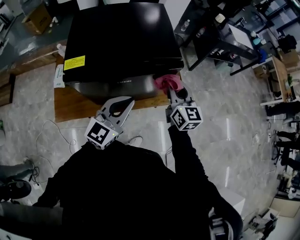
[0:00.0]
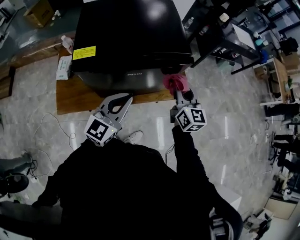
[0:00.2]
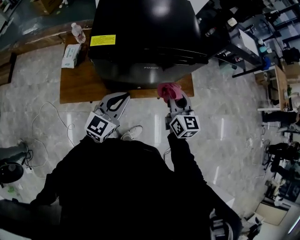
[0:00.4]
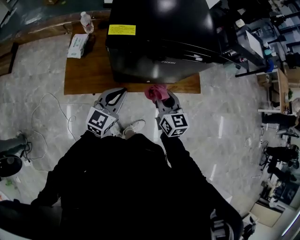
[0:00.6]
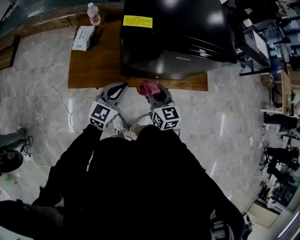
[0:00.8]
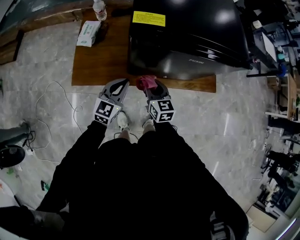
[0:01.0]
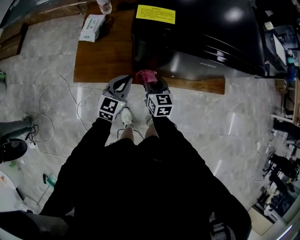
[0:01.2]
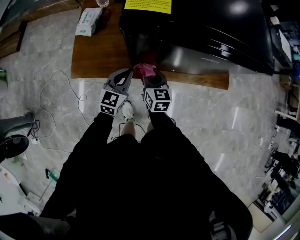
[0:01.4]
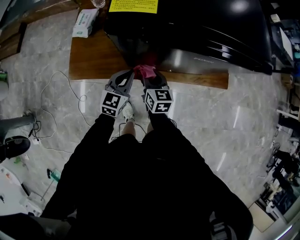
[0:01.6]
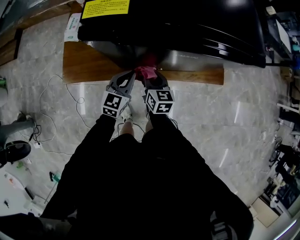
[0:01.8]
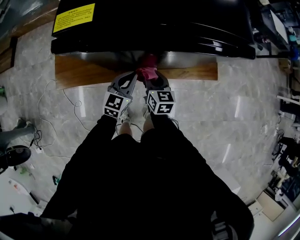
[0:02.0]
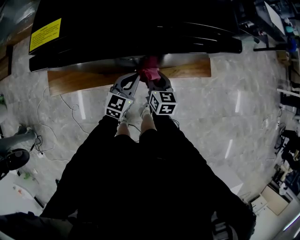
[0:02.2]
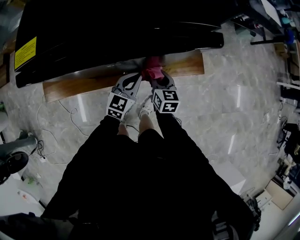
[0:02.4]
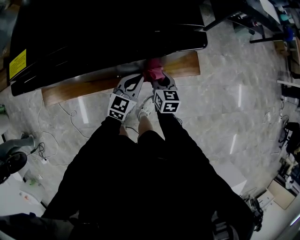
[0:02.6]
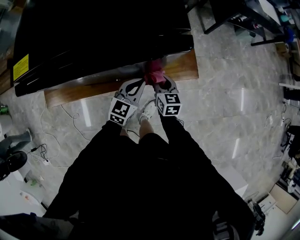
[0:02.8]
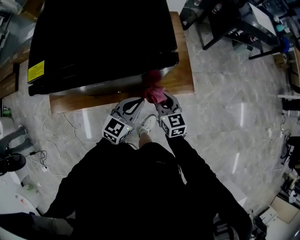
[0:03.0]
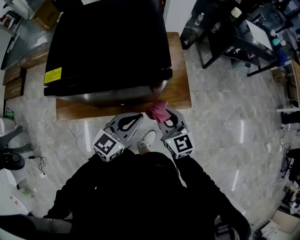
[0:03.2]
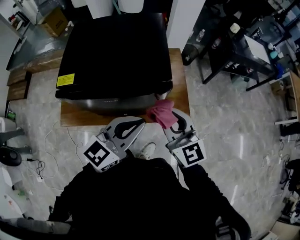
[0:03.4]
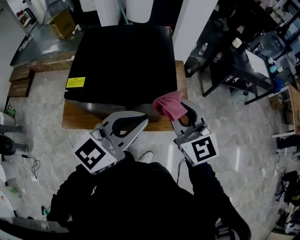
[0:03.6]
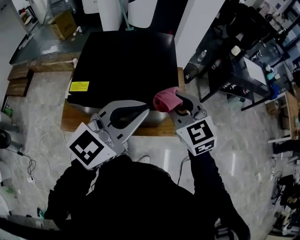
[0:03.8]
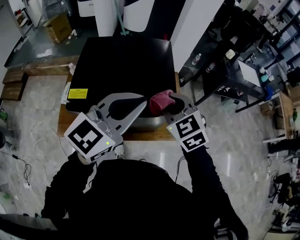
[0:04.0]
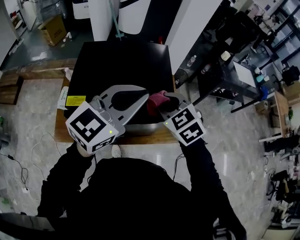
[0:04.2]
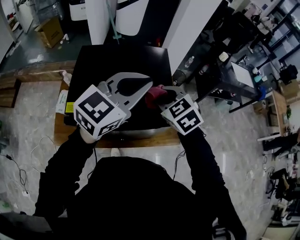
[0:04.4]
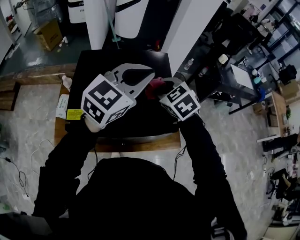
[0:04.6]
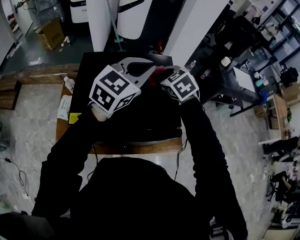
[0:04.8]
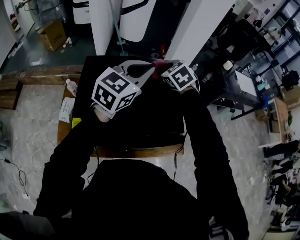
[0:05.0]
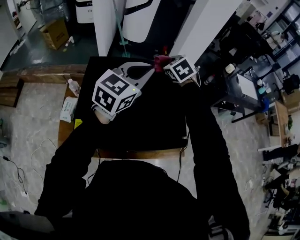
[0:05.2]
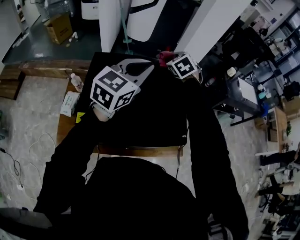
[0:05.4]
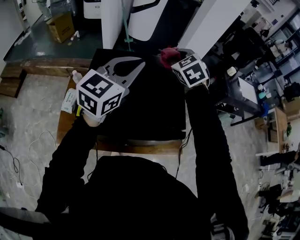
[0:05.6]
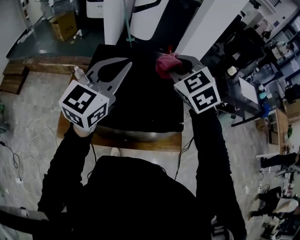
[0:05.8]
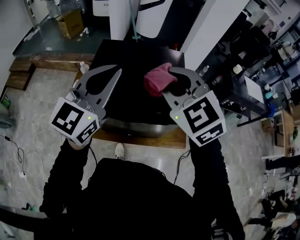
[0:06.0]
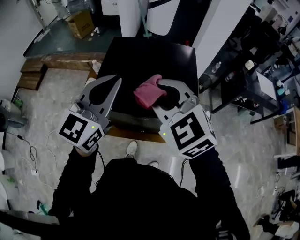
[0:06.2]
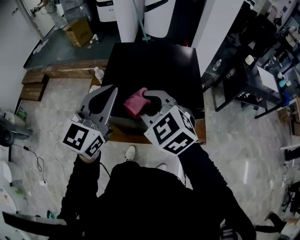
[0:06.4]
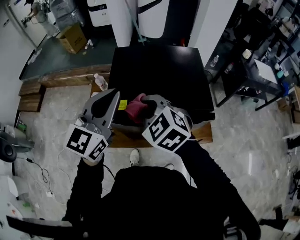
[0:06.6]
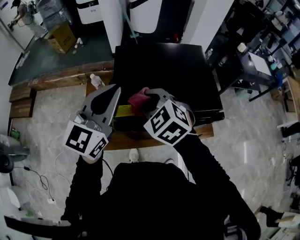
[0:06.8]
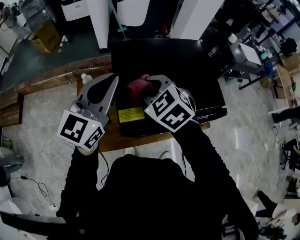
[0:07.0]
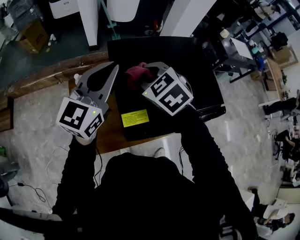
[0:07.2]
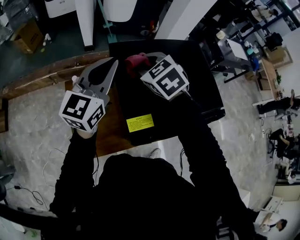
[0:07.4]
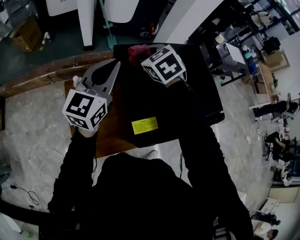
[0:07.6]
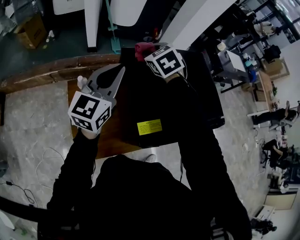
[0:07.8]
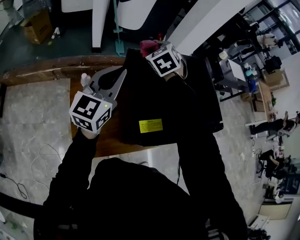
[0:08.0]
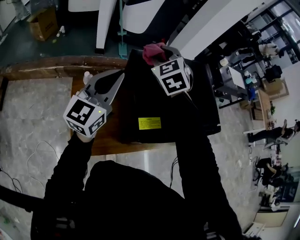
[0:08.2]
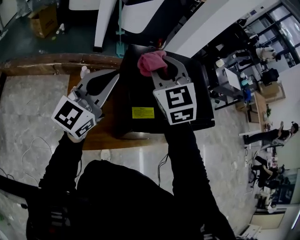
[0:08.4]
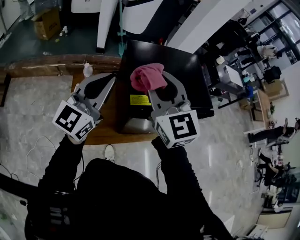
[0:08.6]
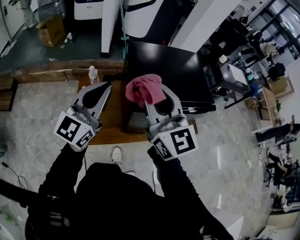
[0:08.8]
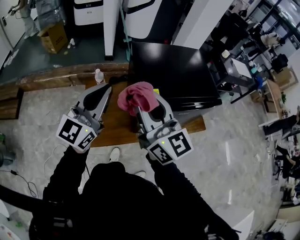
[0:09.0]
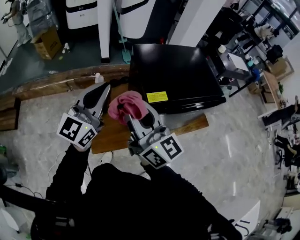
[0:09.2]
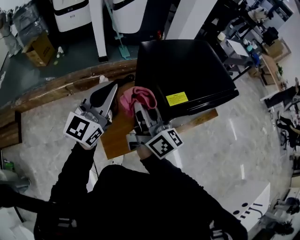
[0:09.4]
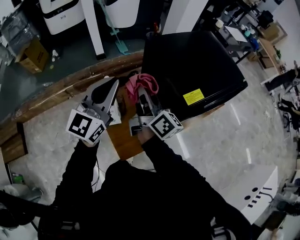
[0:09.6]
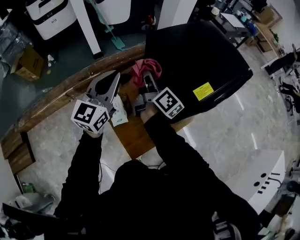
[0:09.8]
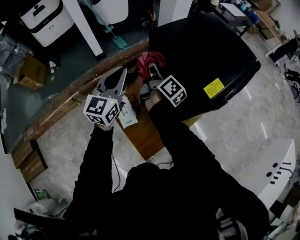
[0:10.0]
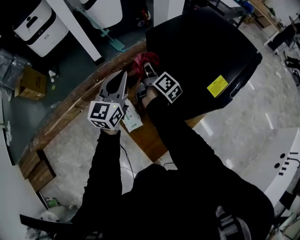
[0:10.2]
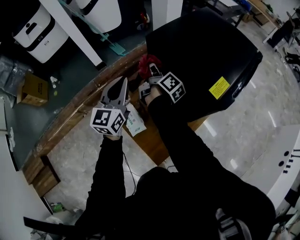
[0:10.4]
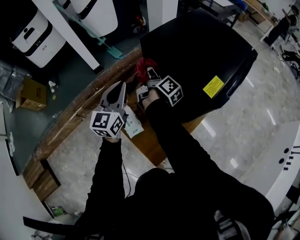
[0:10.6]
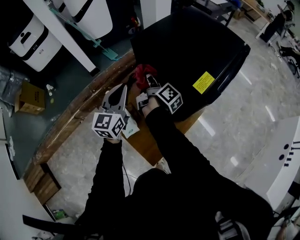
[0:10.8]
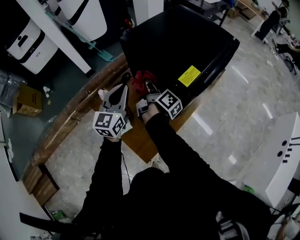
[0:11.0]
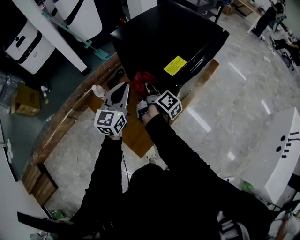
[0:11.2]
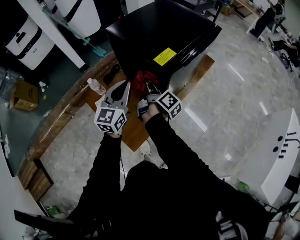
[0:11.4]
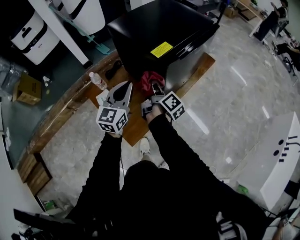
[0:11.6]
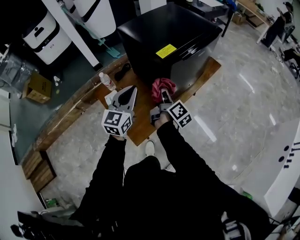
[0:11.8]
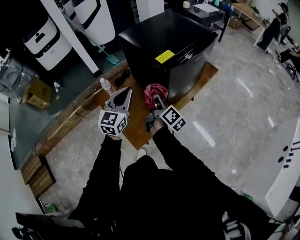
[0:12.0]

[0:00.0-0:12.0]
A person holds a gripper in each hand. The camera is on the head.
0:00.0 to 0:01.6: The two grippers go approximately 40 cm downward and to the left. The left gripper changes its angle by some 30 degrees. The right gripper swivels some 30 degrees.
0:01.6 to 0:03.0: Both grippers move to the right, approximately 35 cm. The left gripper changes its angle by about 20 degrees.
0:03.0 to 0:04.4: The right gripper shifts roughly 35 cm upward and forward, and turns by roughly 40 degrees; the left gripper travels upward by some 40 cm, and rotates approximately 20 degrees.
0:04.4 to 0:06.0: The left gripper goes roughly 10 cm to the left, reaches roughly 15 cm forward, then returns, and changes its angle by approximately 30 degrees. Meanwhile the right gripper travels upward by about 15 cm, travels forward and back again, about 25 cm each way, and swivels about 20 degrees.
0:06.0 to 0:07.6: The right gripper heads forward, to the left and downward, covering some 40 cm, and turns by approximately 30 degrees. Meanwhile the left gripper travels to the left, forward and downward by some 35 cm.
0:07.6 to 0:09.0: The two grippers go roughly 30 cm backward. The right gripper tips its fingers upward by about 60 degrees.
0:09.0 to 0:10.4: The right gripper ends up about 50 cm from where it was, and rotates approximately 80 degrees, while the left gripper moves roughly 35 cm, and swivels approximately 20 degrees.
0:10.4 to 0:12.0: The right gripper is displaced backward and to the right by some 35 cm, while the left gripper goes some 30 cm to the right and backward.

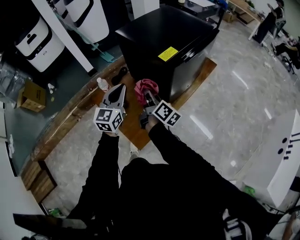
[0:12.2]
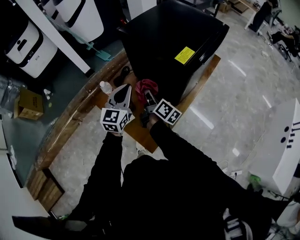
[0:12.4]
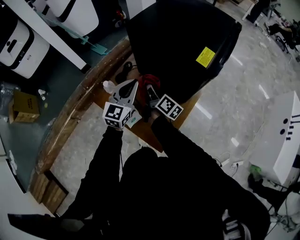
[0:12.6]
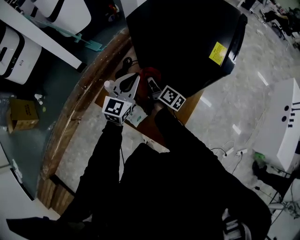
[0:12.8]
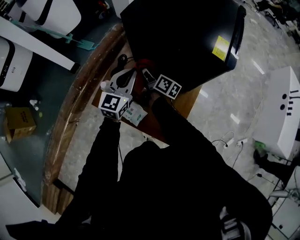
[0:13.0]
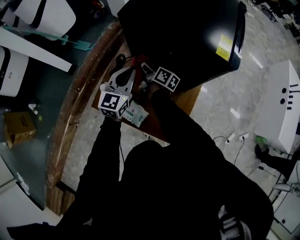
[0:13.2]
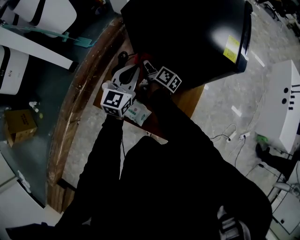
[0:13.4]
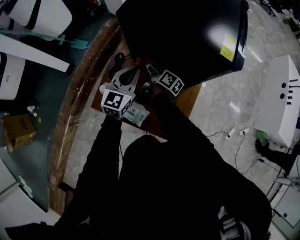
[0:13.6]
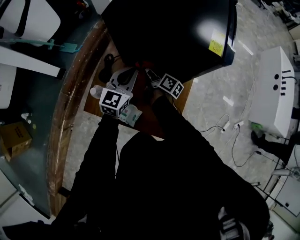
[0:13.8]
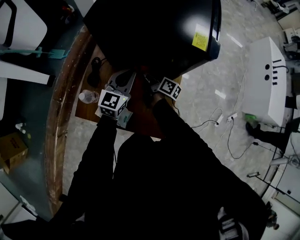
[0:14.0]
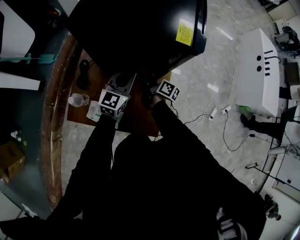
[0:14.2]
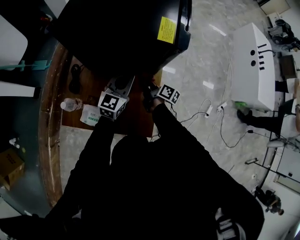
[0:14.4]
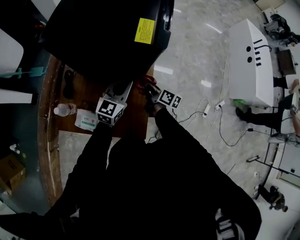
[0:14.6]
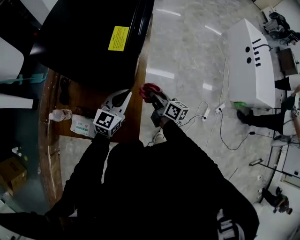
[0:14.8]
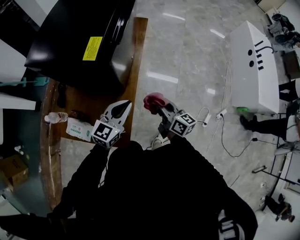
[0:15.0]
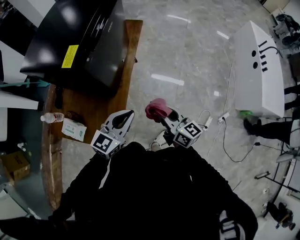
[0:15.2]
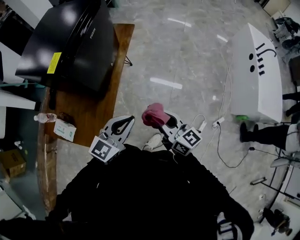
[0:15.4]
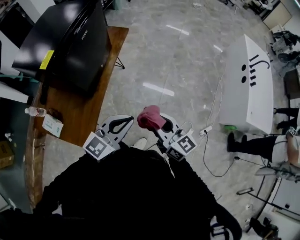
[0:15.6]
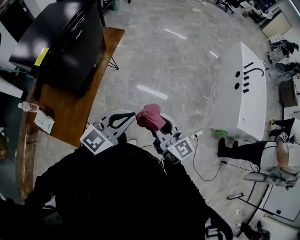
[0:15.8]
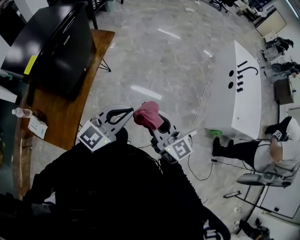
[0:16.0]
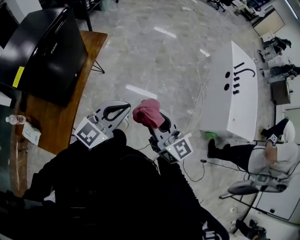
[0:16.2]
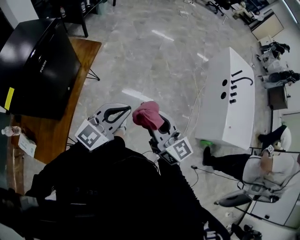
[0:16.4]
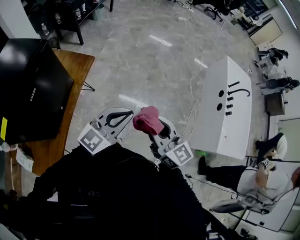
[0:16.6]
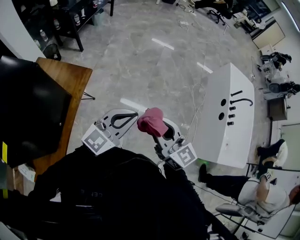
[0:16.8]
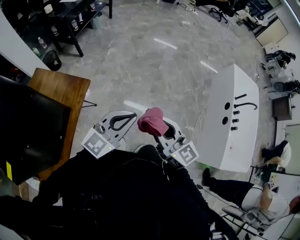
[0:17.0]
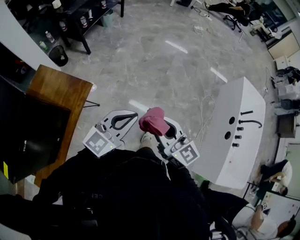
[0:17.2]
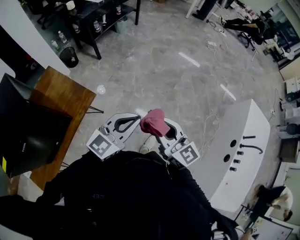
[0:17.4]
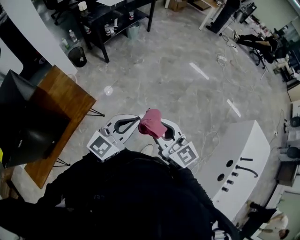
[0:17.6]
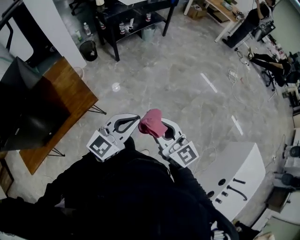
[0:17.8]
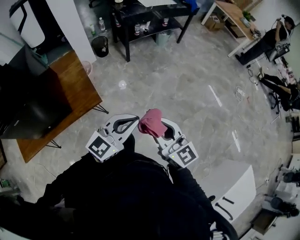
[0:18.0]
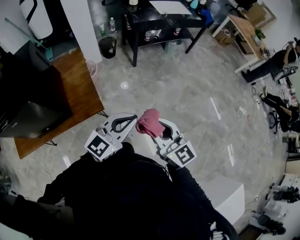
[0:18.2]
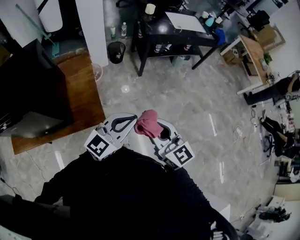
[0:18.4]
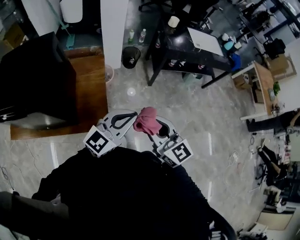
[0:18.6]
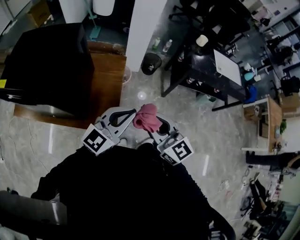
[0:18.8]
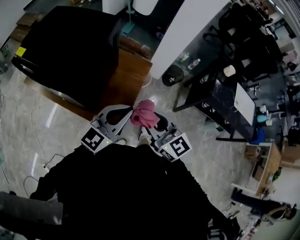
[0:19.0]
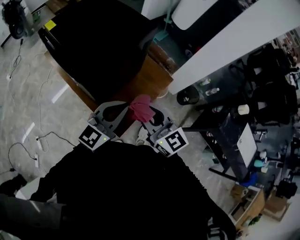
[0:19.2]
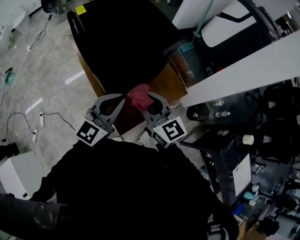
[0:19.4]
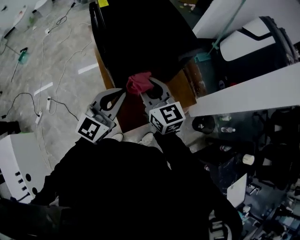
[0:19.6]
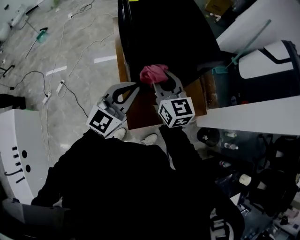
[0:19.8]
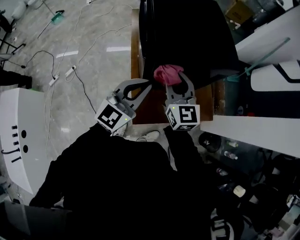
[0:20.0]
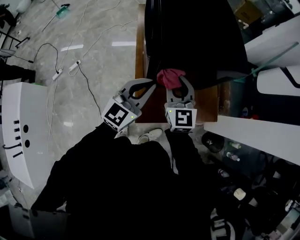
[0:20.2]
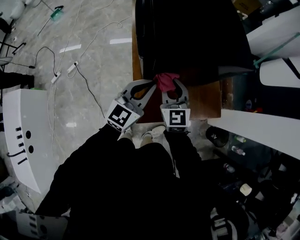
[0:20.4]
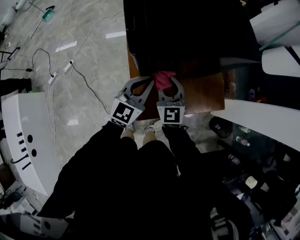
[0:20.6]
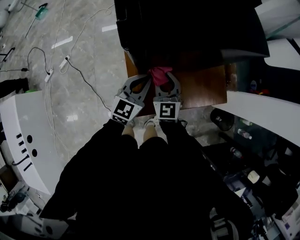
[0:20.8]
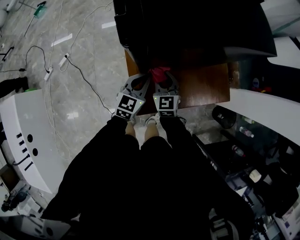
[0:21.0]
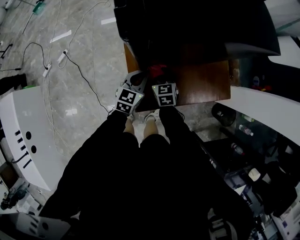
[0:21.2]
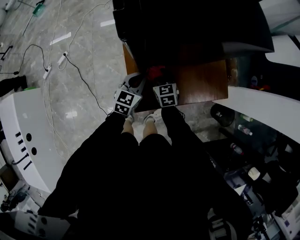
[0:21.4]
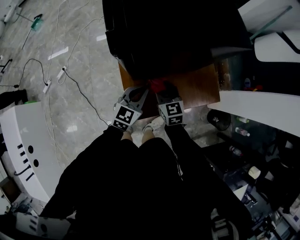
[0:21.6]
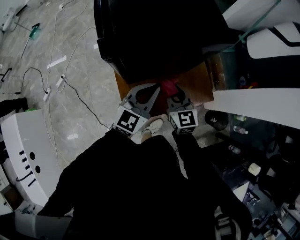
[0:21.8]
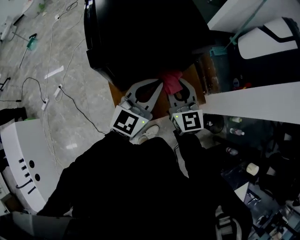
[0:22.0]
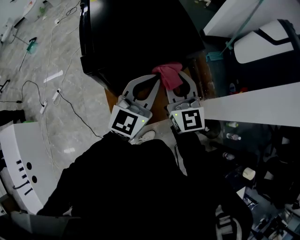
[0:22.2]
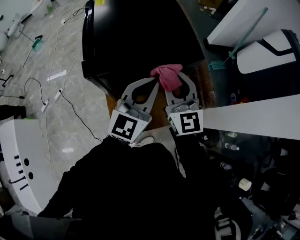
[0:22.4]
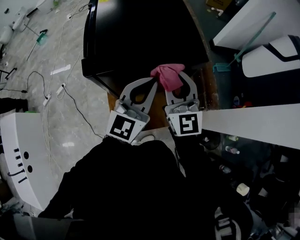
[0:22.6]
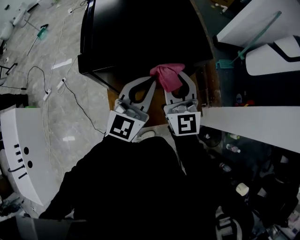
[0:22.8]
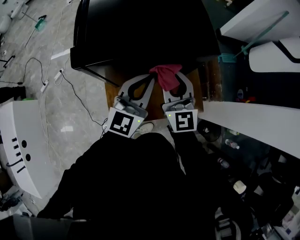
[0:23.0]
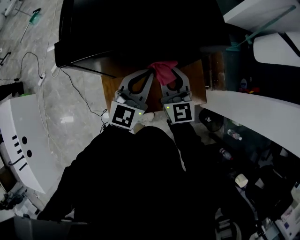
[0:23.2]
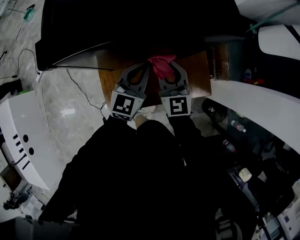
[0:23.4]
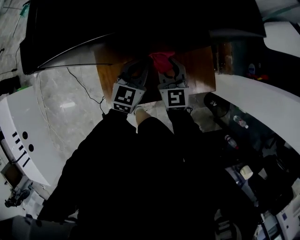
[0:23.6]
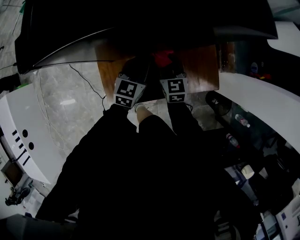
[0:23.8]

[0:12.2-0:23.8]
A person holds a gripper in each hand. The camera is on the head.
0:12.2 to 0:13.6: The right gripper shifts about 35 cm downward, forward and to the left, and swivels about 20 degrees. Meanwhile the left gripper shifts roughly 25 cm forward, downward and to the left, and rotates some 30 degrees.
0:13.6 to 0:15.0: Both grippers travel together to the right, about 40 cm. The left gripper changes its angle by about 20 degrees. Meanwhile the right gripper rotates roughly 30 degrees.
0:15.0 to 0:16.6: Both grippers are carried to the right and forward, approximately 50 cm. The right gripper heads upward, covering about 20 cm, and swivels roughly 30 degrees.
0:16.6 to 0:18.0: Both grippers are carried about 60 cm. The right gripper changes its angle by approximately 40 degrees, while the left gripper swivels approximately 40 degrees.
0:18.0 to 0:19.4: The pair of grippers is taken about 50 cm. The left gripper turns by roughly 100 degrees. Meanwhile the right gripper swivels some 90 degrees.
0:19.4 to 0:21.0: The grippers both shift downward by approximately 30 cm. The right gripper turns by about 20 degrees; the left gripper turns by approximately 40 degrees.
0:21.0 to 0:22.4: The grippers both shift upward and to the right by approximately 40 cm. The left gripper rotates approximately 20 degrees. Meanwhile the right gripper turns by some 30 degrees.
0:22.4 to 0:23.8: Both grippers travel together downward, about 40 cm. The left gripper turns by approximately 30 degrees, while the right gripper points its fingers approximately 30 degrees further downward.
